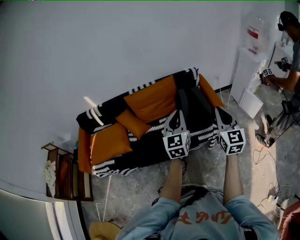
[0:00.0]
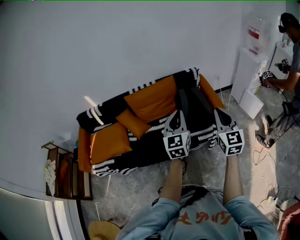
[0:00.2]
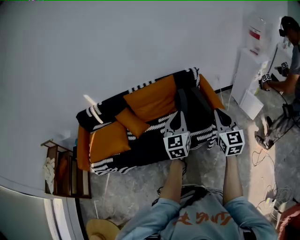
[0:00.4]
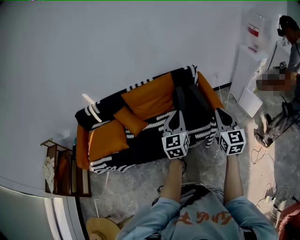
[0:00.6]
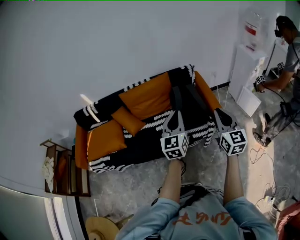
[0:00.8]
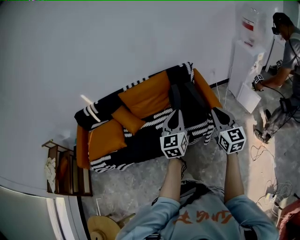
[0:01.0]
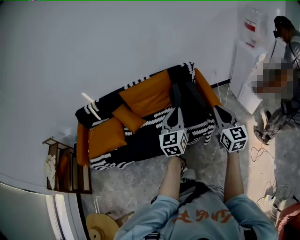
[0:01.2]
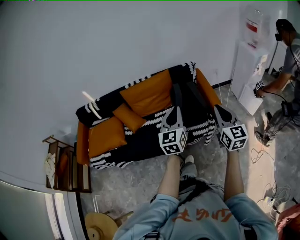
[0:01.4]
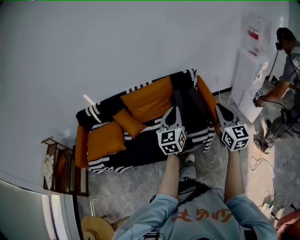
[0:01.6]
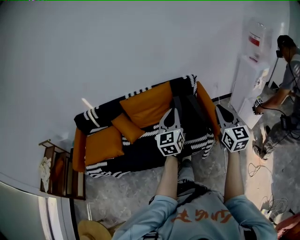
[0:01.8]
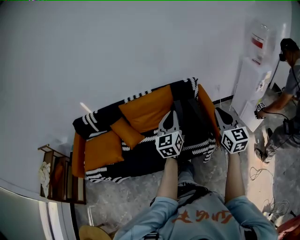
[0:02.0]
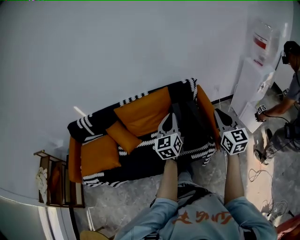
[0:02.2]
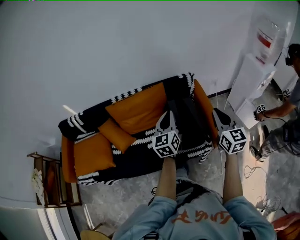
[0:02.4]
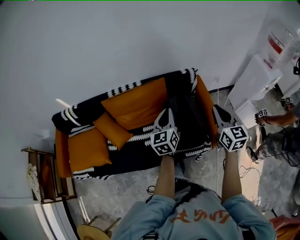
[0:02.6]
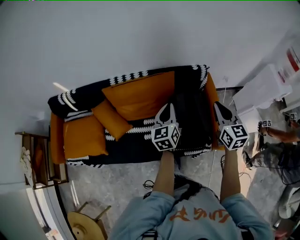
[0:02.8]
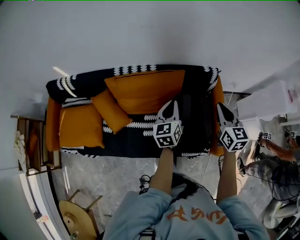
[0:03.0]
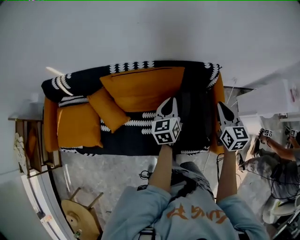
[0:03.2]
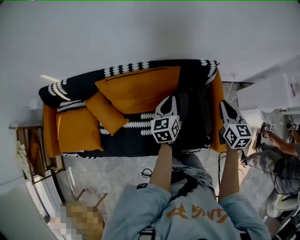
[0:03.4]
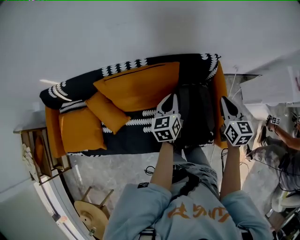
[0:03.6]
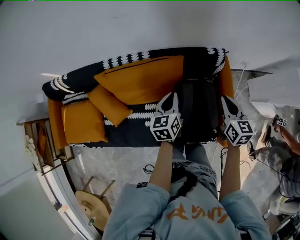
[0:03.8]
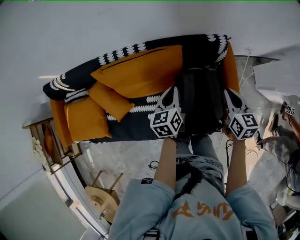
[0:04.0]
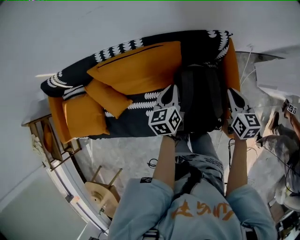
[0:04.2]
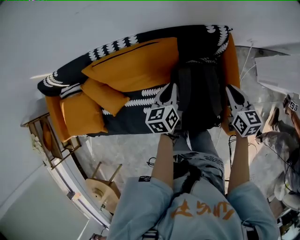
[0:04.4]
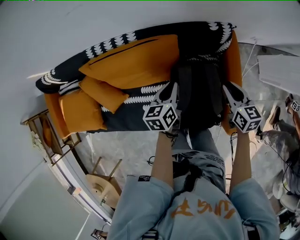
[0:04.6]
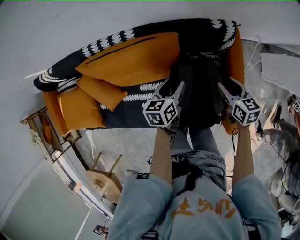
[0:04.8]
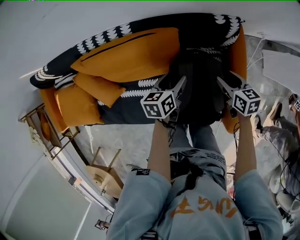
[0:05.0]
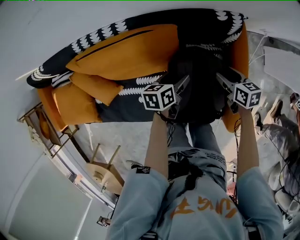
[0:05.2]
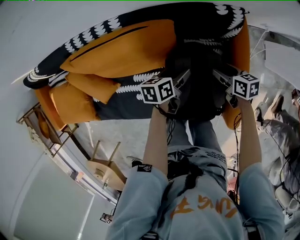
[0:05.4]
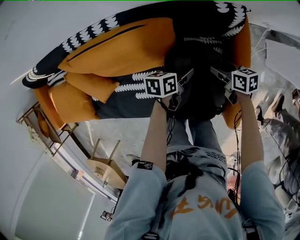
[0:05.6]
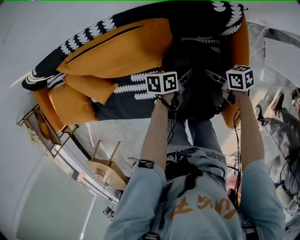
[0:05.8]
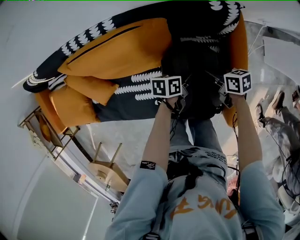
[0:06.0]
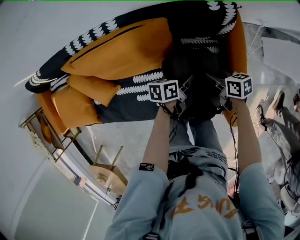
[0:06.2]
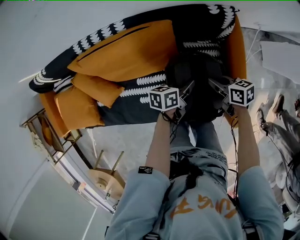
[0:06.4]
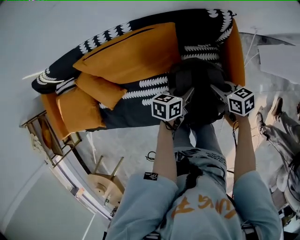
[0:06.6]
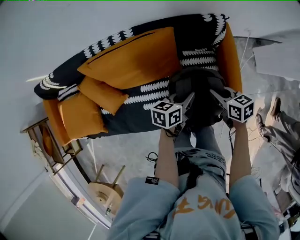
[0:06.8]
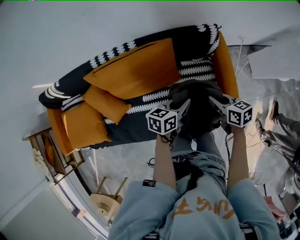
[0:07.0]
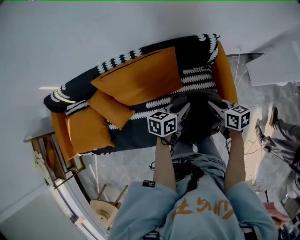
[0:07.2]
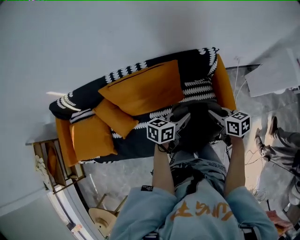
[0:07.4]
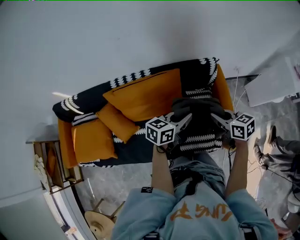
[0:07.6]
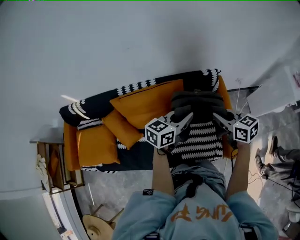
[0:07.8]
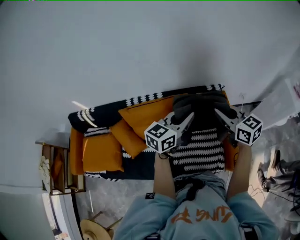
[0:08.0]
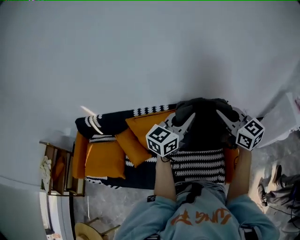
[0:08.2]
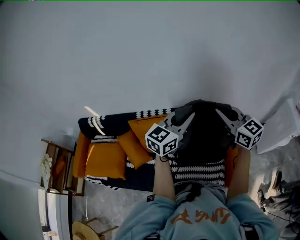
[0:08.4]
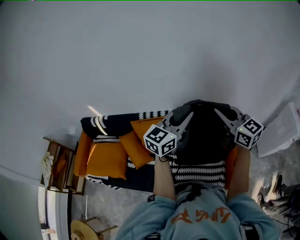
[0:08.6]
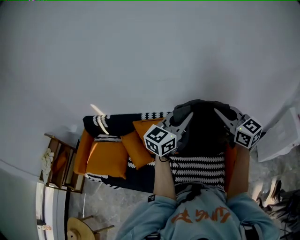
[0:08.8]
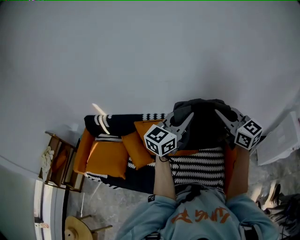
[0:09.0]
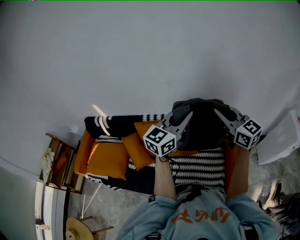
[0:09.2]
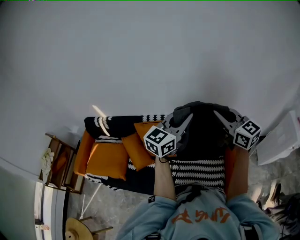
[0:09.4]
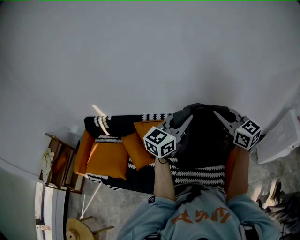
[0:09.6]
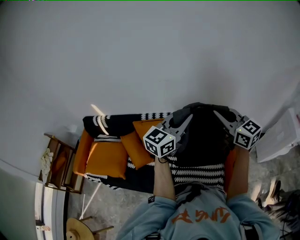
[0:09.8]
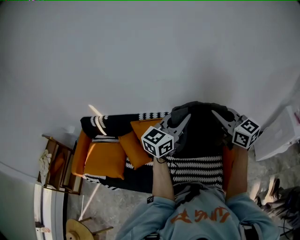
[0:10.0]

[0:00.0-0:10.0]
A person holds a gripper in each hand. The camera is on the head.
0:00.0 to 0:01.4: Both grippers travel together to the right, some 10 cm.
0:01.4 to 0:02.8: Both grippers travel together forward, approximately 40 cm. The left gripper swivels approximately 20 degrees.
0:02.8 to 0:04.2: Both grippers move downward and forward, about 20 cm. The right gripper turns by about 20 degrees. Meanwhile the left gripper rotates roughly 20 degrees.
0:04.2 to 0:05.8: Both grippers travel together downward, about 20 cm. The left gripper changes its angle by about 40 degrees, and opens up. Meanwhile the right gripper changes its angle by approximately 50 degrees, and opens.
0:05.8 to 0:07.2: The two grippers go roughly 20 cm upward. The right gripper turns by approximately 20 degrees, and closes up. The left gripper swivels some 30 degrees, and closes up.
0:07.2 to 0:08.6: The two grippers go approximately 35 cm upward. The left gripper turns by approximately 50 degrees. Meanwhile the right gripper points its fingers about 30 degrees further upward.
0:08.6 to 0:10.0: The grippers make only small movements.

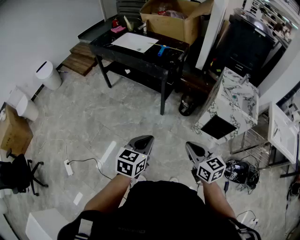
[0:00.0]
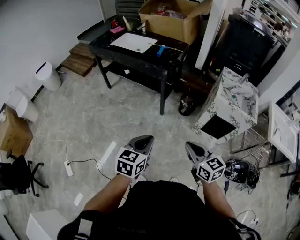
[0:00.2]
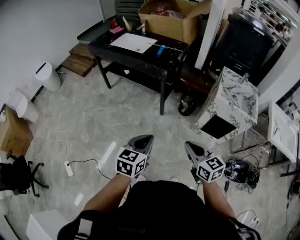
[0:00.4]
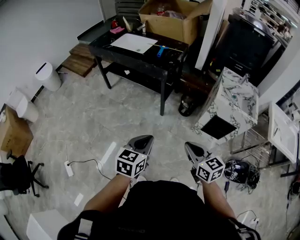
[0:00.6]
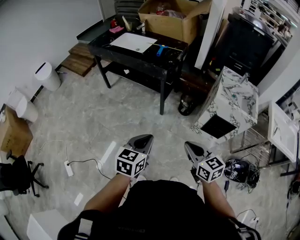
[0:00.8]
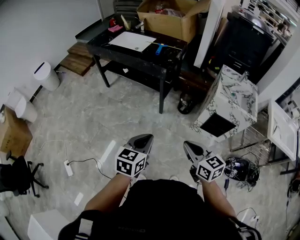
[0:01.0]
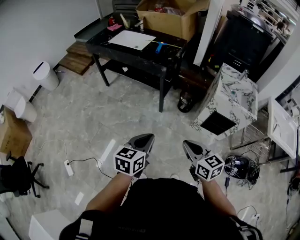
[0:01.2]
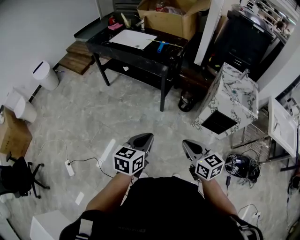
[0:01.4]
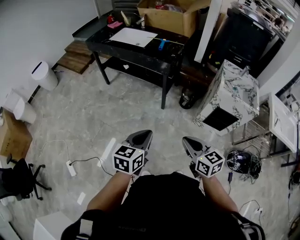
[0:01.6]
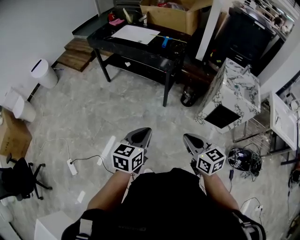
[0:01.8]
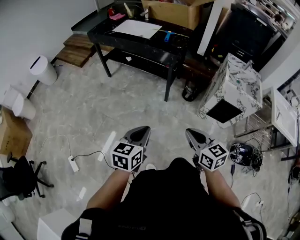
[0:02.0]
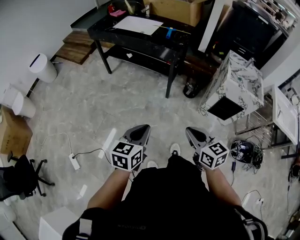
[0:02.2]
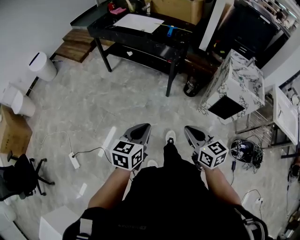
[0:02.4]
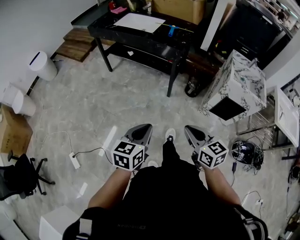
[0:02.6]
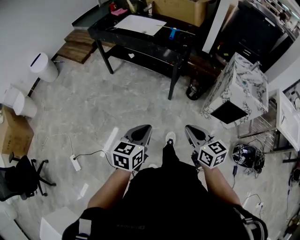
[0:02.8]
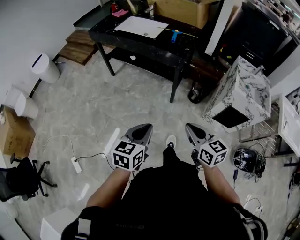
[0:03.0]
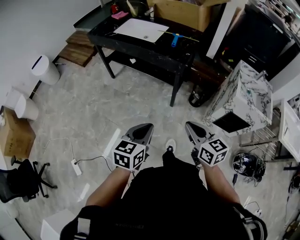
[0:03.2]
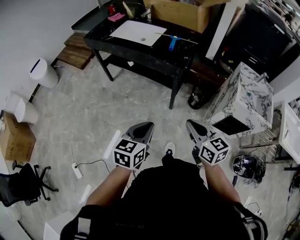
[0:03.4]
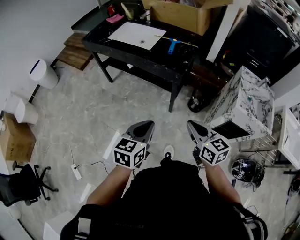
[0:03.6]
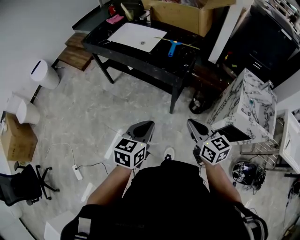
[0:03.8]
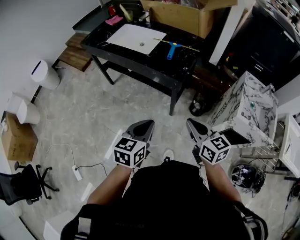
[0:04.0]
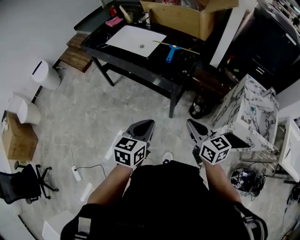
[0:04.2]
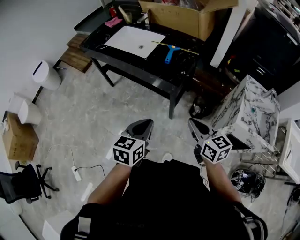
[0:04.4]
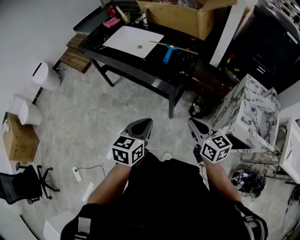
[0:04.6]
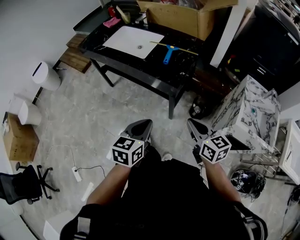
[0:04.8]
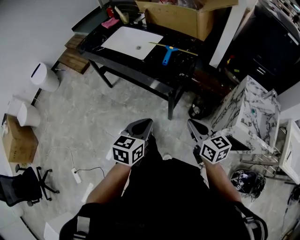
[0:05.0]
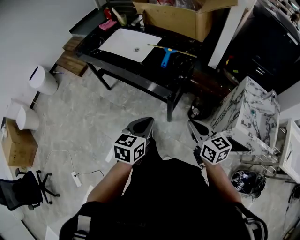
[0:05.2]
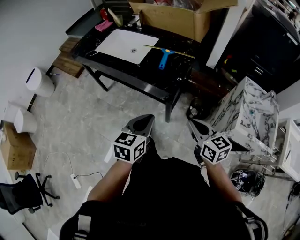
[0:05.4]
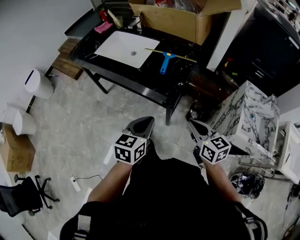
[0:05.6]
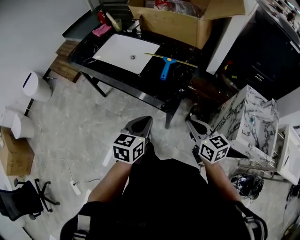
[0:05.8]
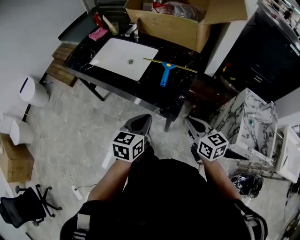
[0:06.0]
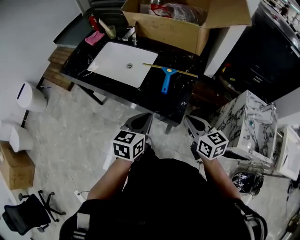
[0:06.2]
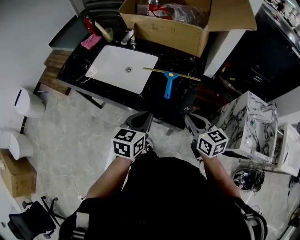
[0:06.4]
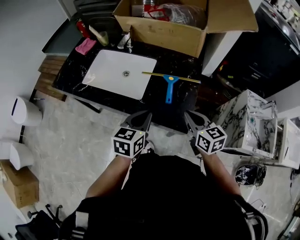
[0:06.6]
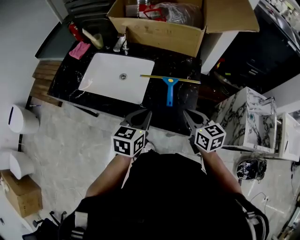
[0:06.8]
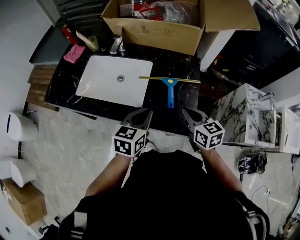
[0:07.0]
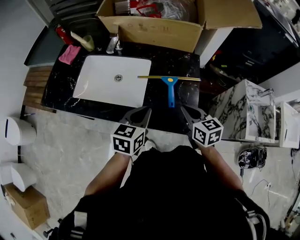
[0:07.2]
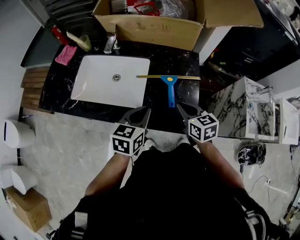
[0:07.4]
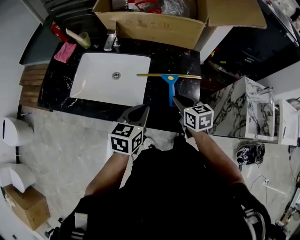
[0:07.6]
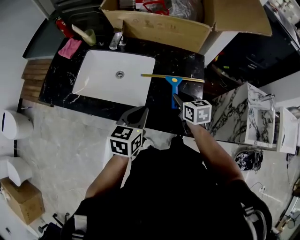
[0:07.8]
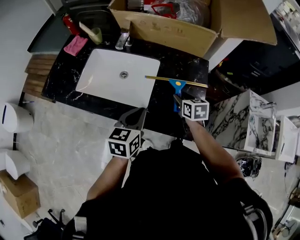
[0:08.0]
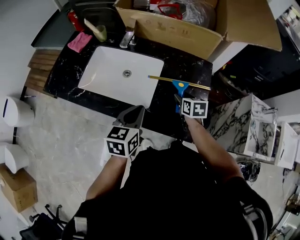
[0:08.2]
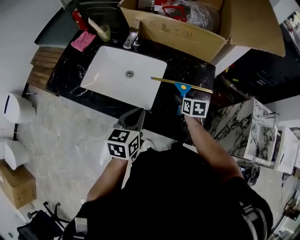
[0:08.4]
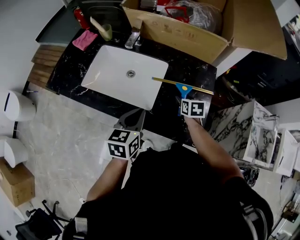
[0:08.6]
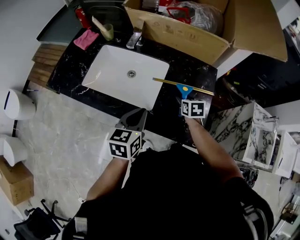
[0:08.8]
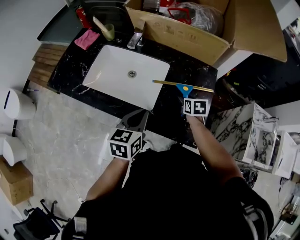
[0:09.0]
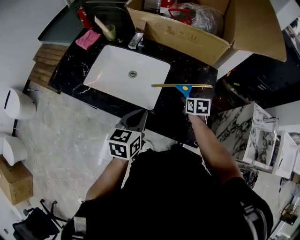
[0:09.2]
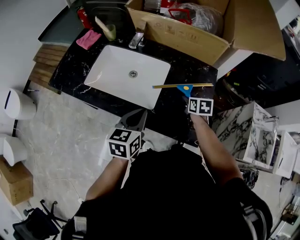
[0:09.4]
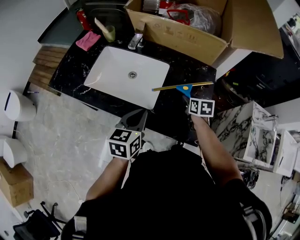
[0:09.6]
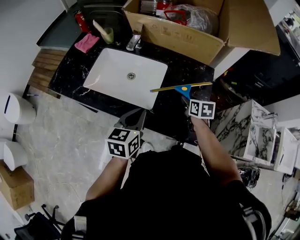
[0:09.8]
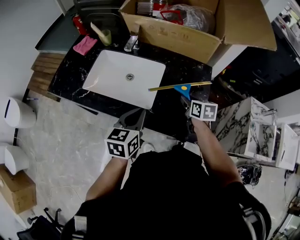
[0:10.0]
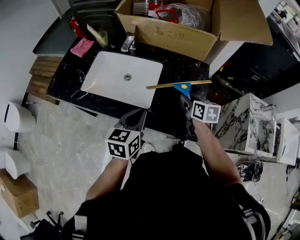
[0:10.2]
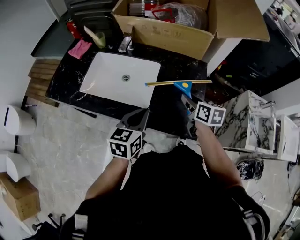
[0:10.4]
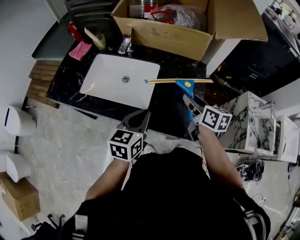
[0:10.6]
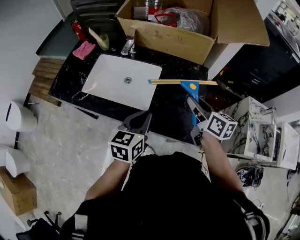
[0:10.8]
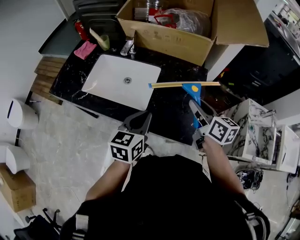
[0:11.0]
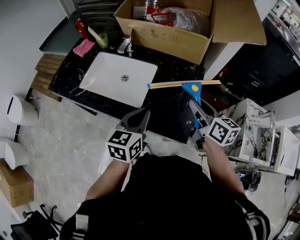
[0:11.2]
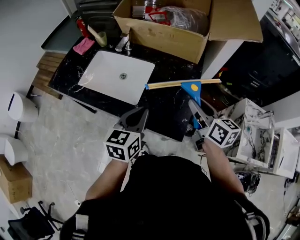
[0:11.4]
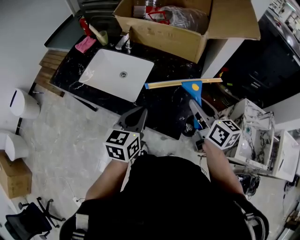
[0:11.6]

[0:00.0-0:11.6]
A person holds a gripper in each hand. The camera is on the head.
0:00.0 to 0:01.4: The grippers make only small movements.
0:01.4 to 0:02.8: The left gripper is displaced to the left by about 10 cm, while the right gripper shifts about 10 cm to the left and forward.
0:02.8 to 0:04.4: Both grippers travel together forward, some 30 cm.
0:04.4 to 0:05.8: Both grippers travel together forward, about 15 cm.
0:05.8 to 0:07.2: The left gripper travels forward by roughly 25 cm; the right gripper travels forward and to the left by some 25 cm, and changes its angle by roughly 20 degrees.
0:07.2 to 0:08.8: The left gripper is displaced to the left by roughly 5 cm; the right gripper is displaced forward and downward by about 15 cm, changes its angle by roughly 20 degrees, and opens up.
0:08.8 to 0:10.2: The right gripper is displaced upward by roughly 10 cm.
0:10.2 to 0:11.6: The right gripper goes approximately 20 cm upward, backward and to the right, and rotates approximately 30 degrees; the left gripper heads to the right and upward, covering some 10 cm.

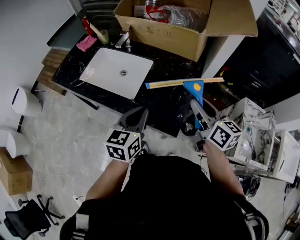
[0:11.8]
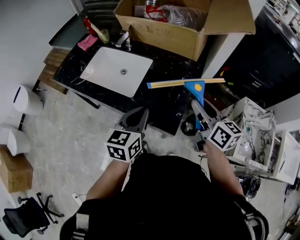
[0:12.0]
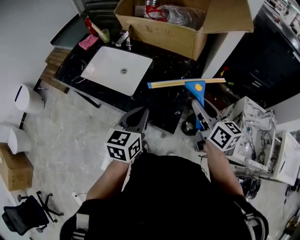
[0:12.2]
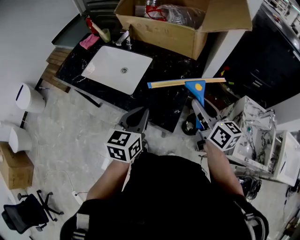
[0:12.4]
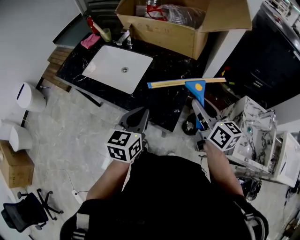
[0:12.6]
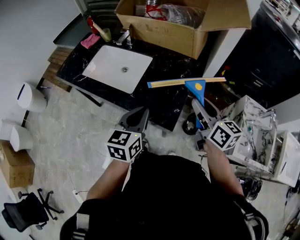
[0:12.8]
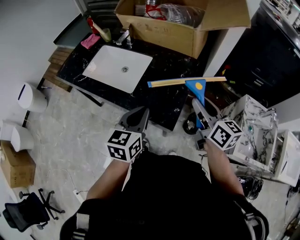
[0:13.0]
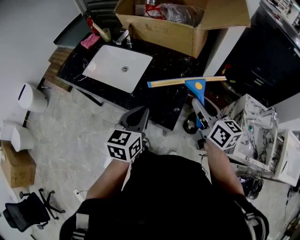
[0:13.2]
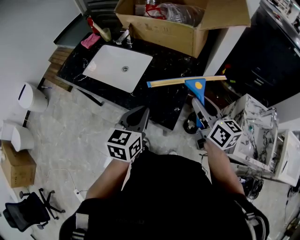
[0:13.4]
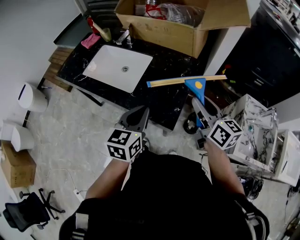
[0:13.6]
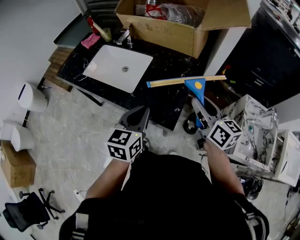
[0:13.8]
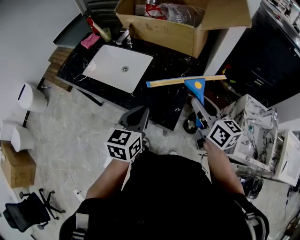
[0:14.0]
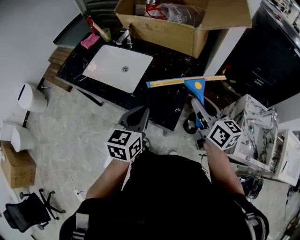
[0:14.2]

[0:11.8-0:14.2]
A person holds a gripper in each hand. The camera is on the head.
0:11.8 to 0:13.0: The grippers move only a little.
0:13.0 to 0:14.2: Neither gripper changes place.
